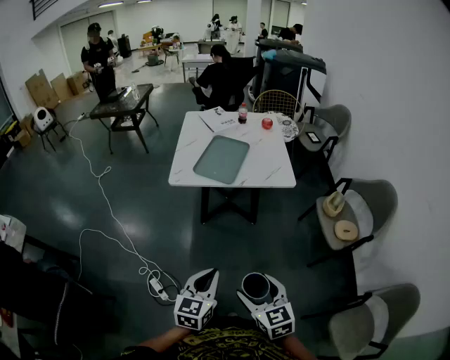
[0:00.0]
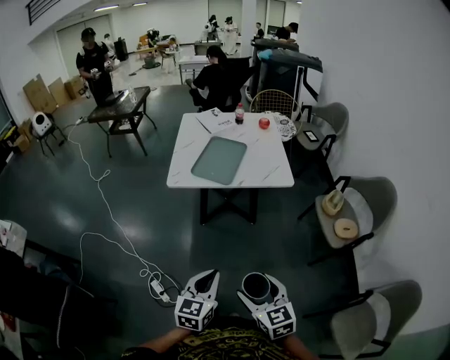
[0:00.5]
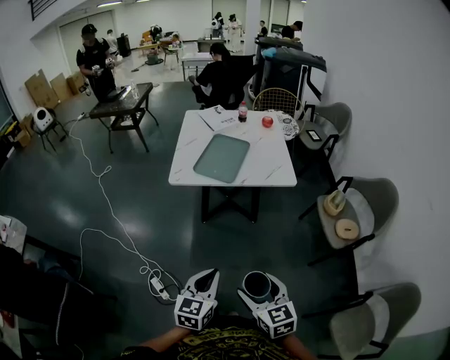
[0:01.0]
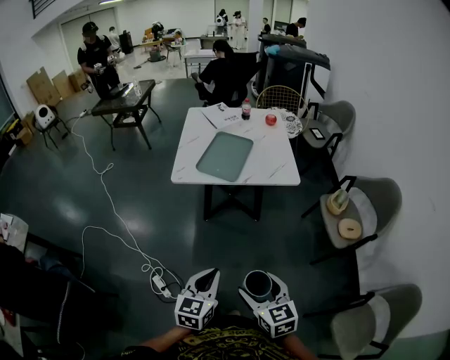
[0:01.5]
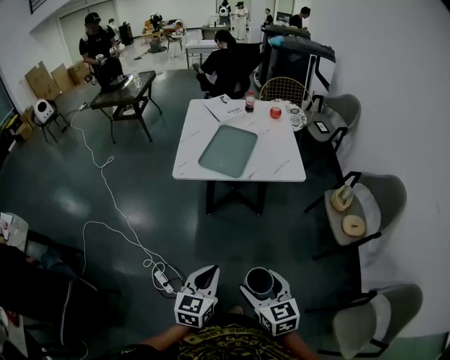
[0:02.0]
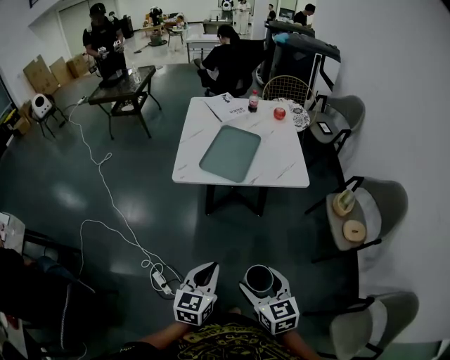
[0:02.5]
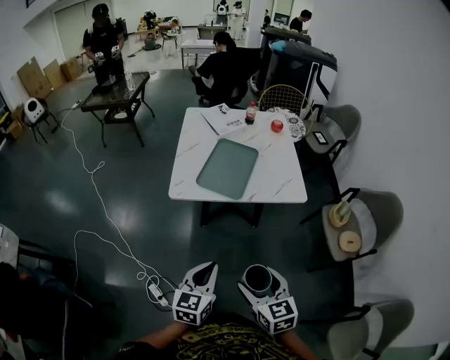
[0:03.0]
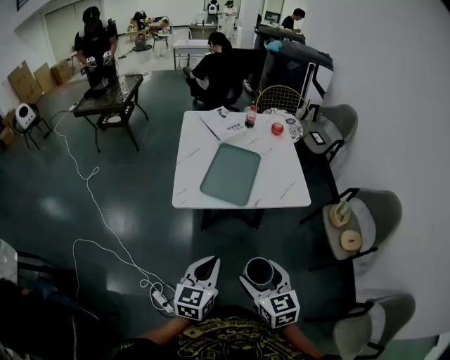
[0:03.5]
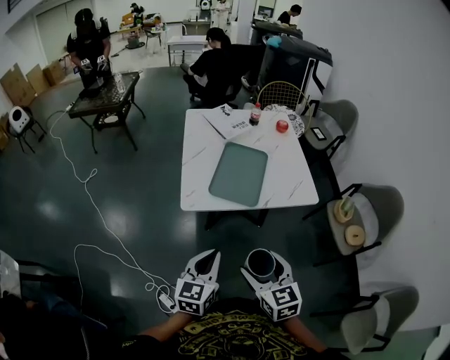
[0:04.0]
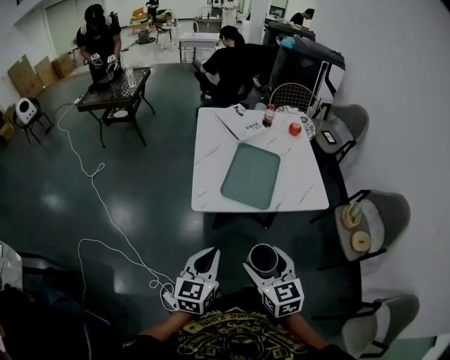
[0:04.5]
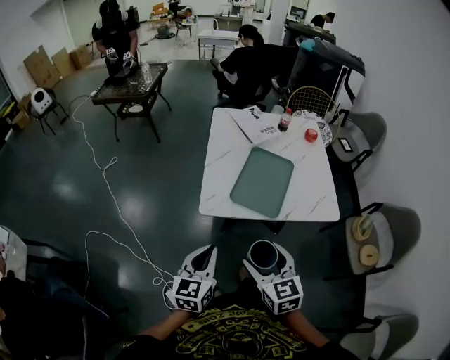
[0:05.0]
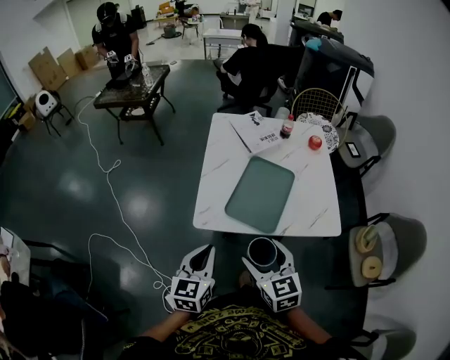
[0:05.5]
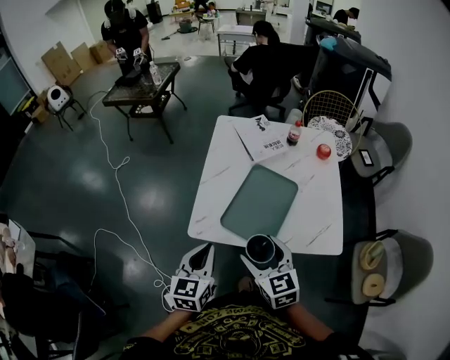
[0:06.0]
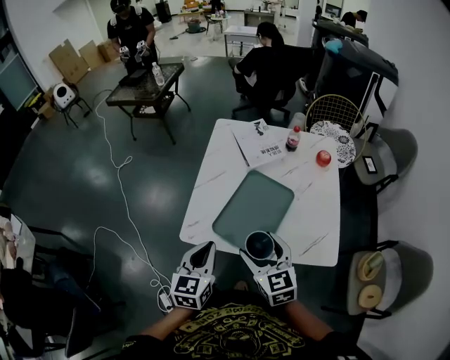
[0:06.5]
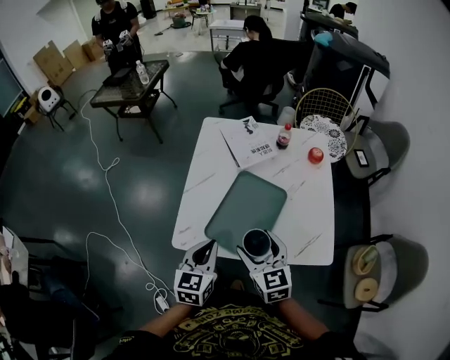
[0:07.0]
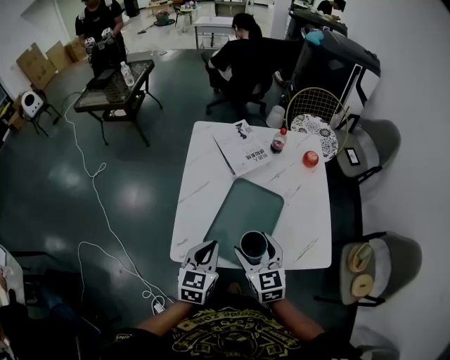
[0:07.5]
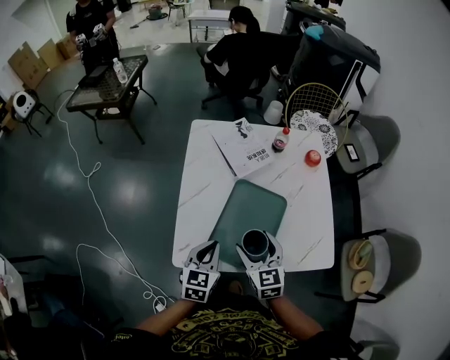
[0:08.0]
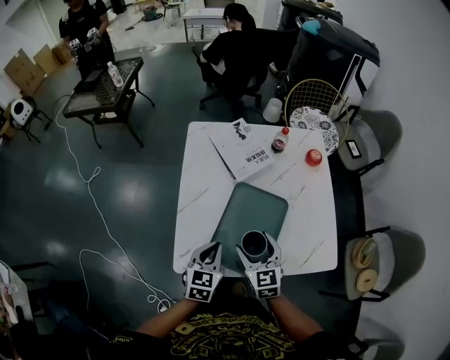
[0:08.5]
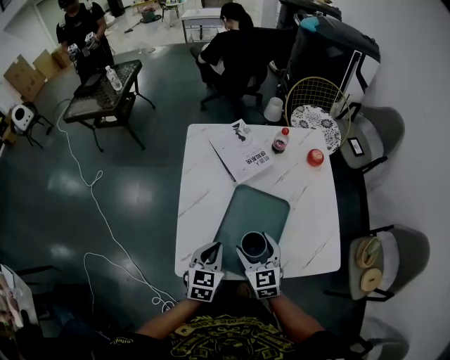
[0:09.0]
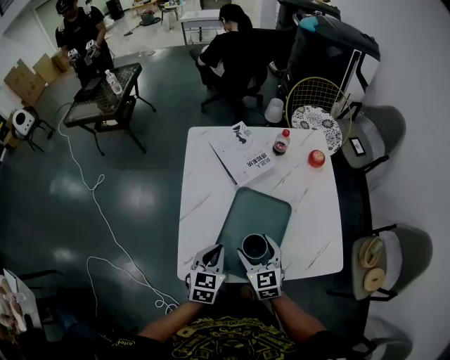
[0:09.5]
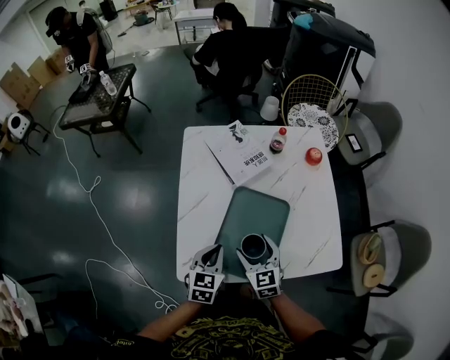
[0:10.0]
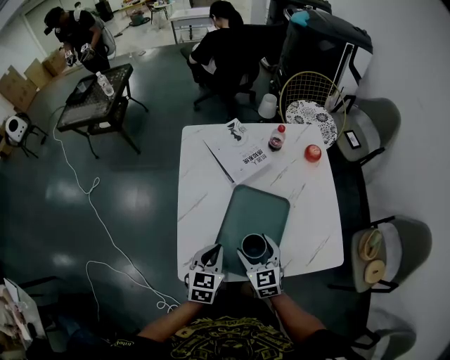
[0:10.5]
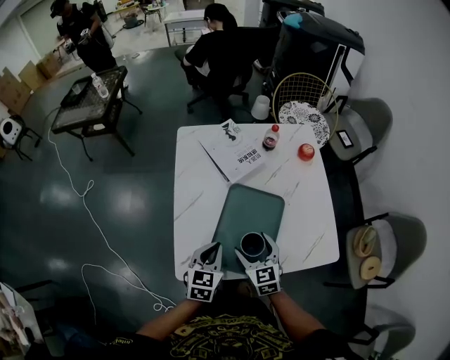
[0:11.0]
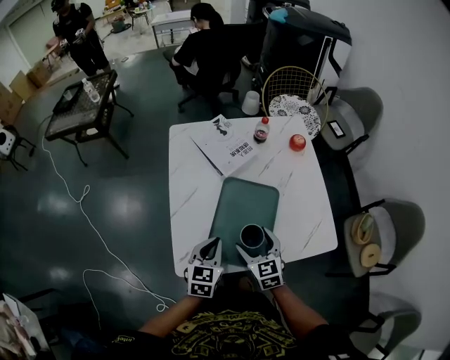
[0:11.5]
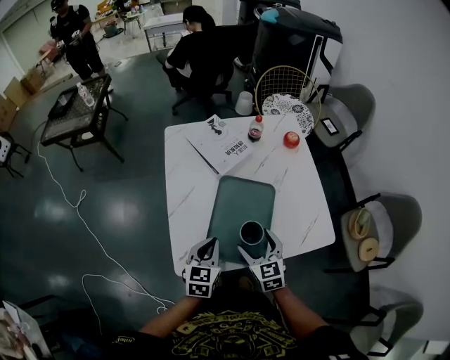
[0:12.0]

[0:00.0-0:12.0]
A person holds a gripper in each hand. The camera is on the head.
0:00.0 to 0:02.0: The grippers stay close to where they were, moving slightly.
0:02.0 to 0:04.0: Both grippers move forward and to the left, about 25 cm.
0:04.0 to 0:06.0: Both grippers travel together forward, about 20 cm. The left gripper turns by about 20 degrees.
0:06.0 to 0:08.0: The grippers both shift forward and downward by some 15 cm.
0:08.0 to 0:10.0: The right gripper shifts about 5 cm downward; the left gripper ends up approximately 5 cm from where it was.
0:10.0 to 0:12.0: The right gripper moves roughly 5 cm.

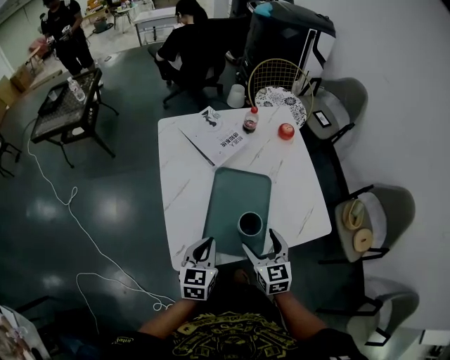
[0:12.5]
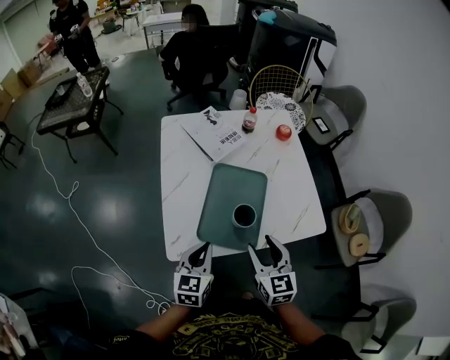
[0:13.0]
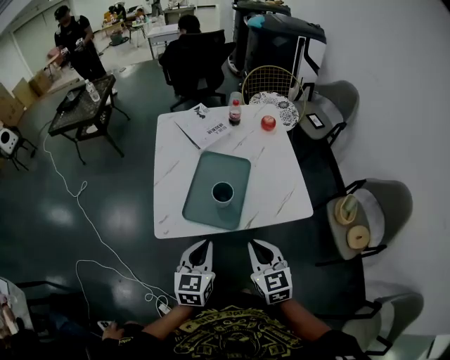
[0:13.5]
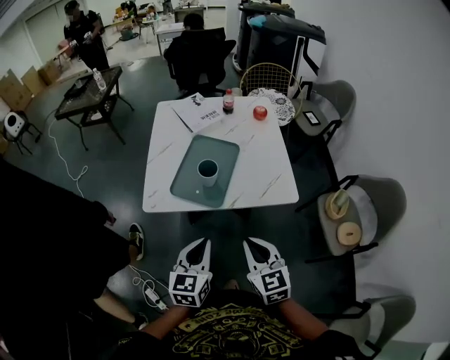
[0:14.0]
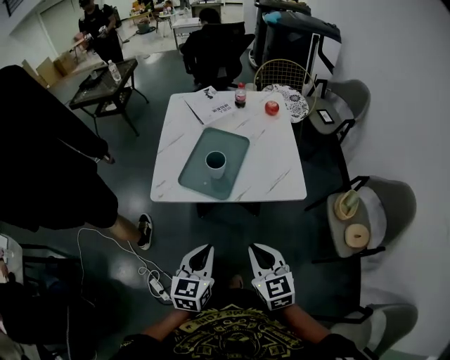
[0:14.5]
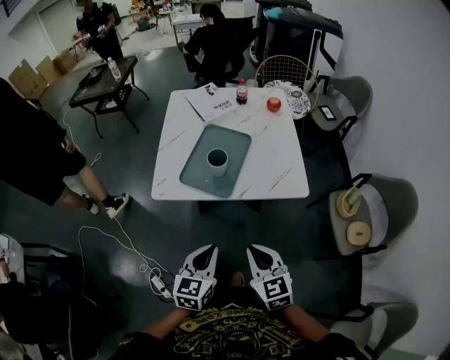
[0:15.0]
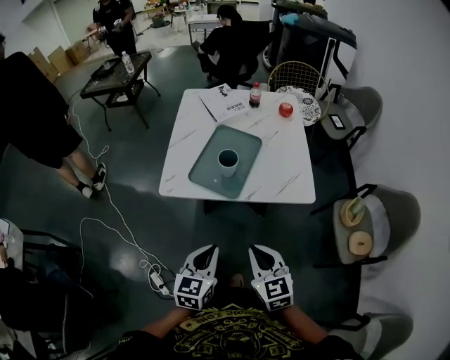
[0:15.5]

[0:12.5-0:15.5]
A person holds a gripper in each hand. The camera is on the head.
0:12.5 to 0:14.0: Both grippers move backward and to the right, about 25 cm. The right gripper closes its fingers.
0:14.0 to 0:15.5: The left gripper is displaced backward by about 5 cm.

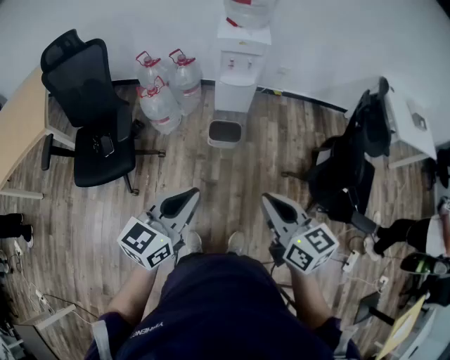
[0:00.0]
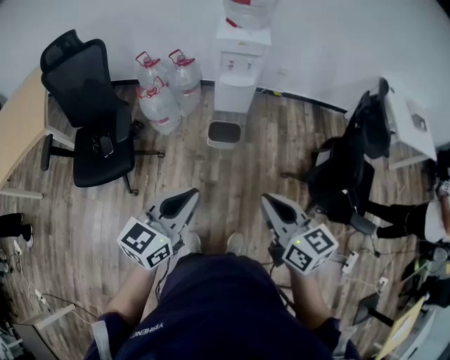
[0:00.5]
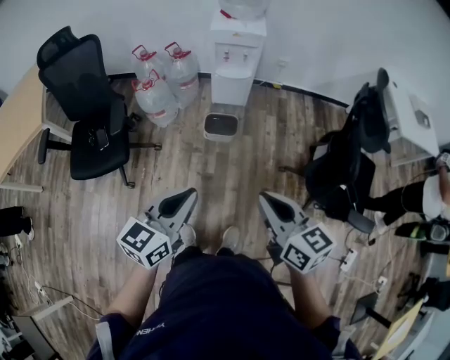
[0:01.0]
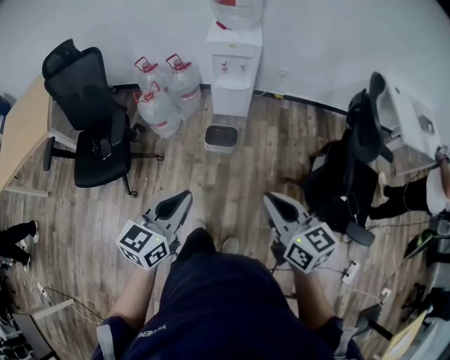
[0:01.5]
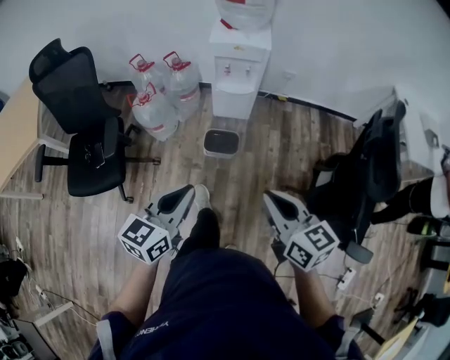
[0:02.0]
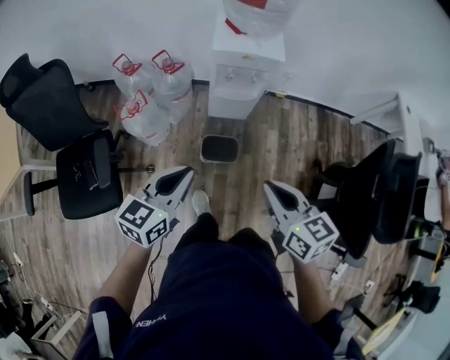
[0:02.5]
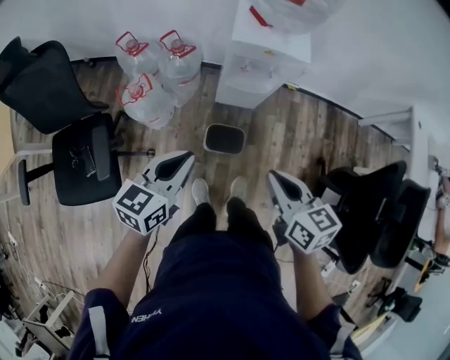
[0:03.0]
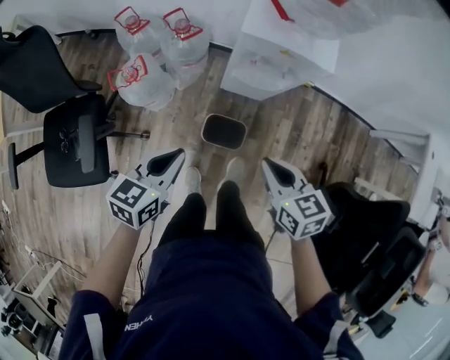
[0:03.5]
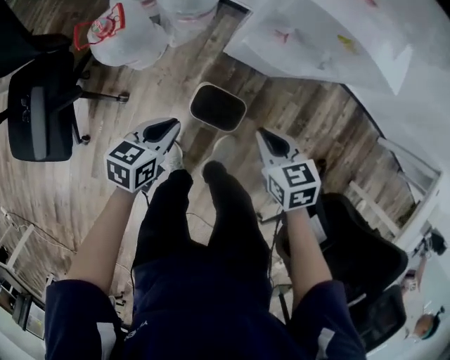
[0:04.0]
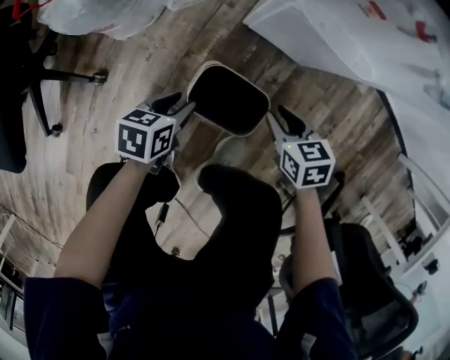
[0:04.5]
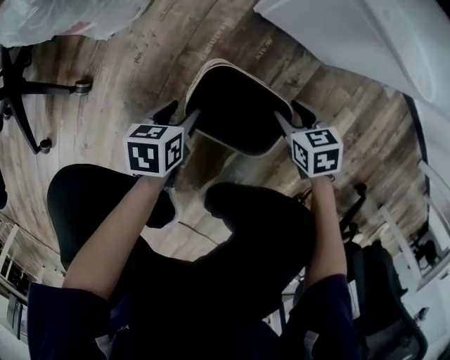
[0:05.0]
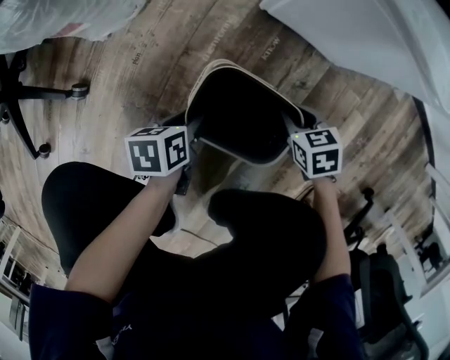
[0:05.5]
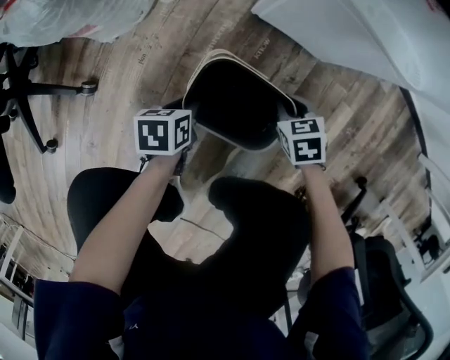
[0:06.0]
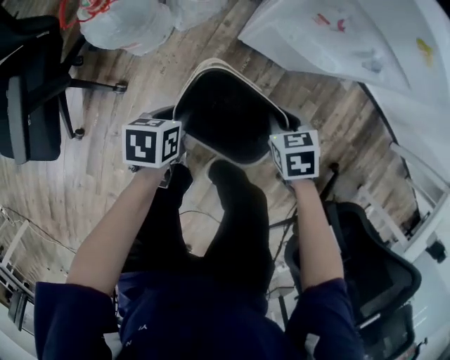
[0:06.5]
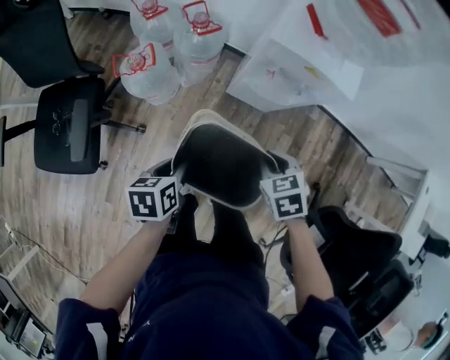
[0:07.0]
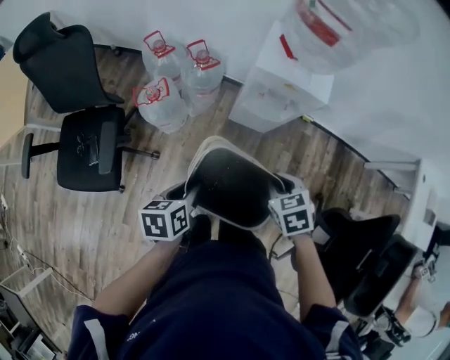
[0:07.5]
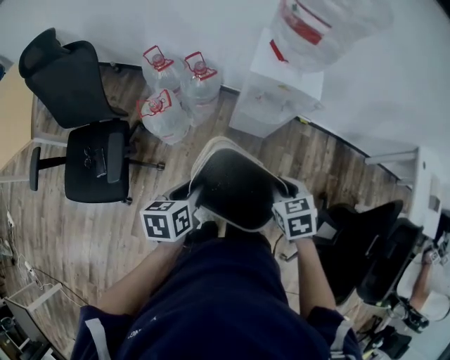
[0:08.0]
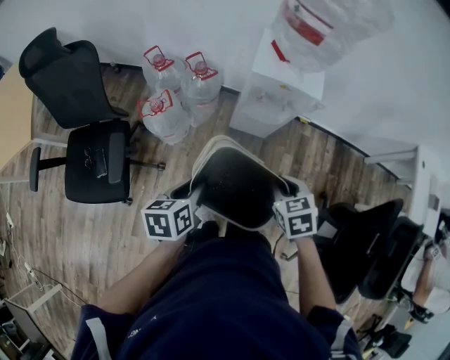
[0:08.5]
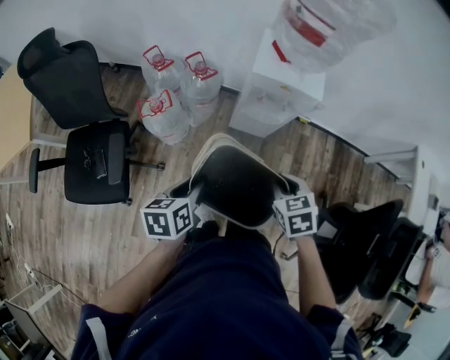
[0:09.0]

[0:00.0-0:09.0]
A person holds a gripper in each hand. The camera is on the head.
0:00.0 to 0:02.0: The left gripper moves forward, downward and to the right, roughly 15 cm. Meanwhile the right gripper travels forward and to the right by roughly 15 cm.
0:02.0 to 0:04.5: Both grippers travel together downward and forward, about 80 cm. The right gripper tilts its fingers some 40 degrees downward, and opens up; the left gripper tips its fingers downward by approximately 30 degrees, and opens.
0:04.5 to 0:07.0: Both grippers travel together upward, about 40 cm.
0:07.0 to 0:09.0: The left gripper shifts some 15 cm upward; the right gripper travels upward and backward by approximately 15 cm.

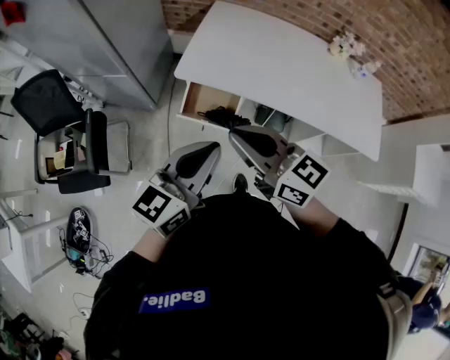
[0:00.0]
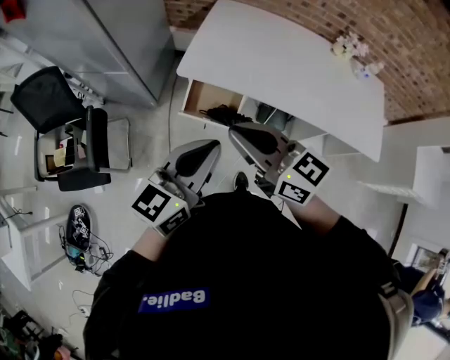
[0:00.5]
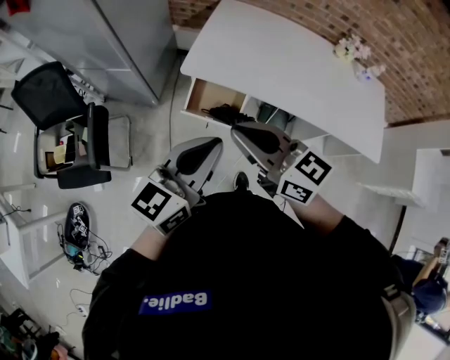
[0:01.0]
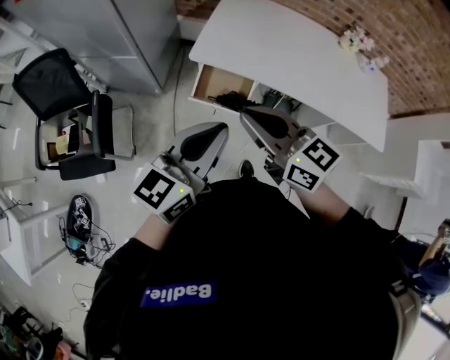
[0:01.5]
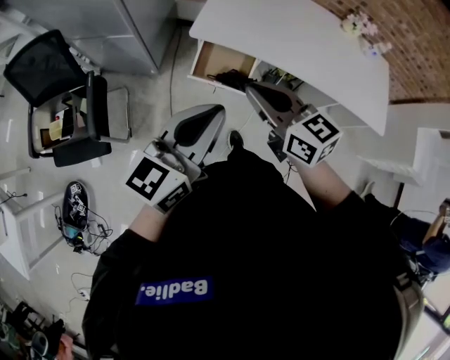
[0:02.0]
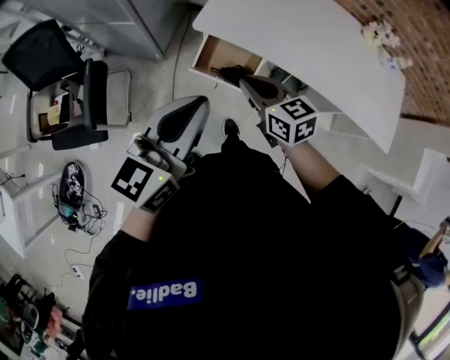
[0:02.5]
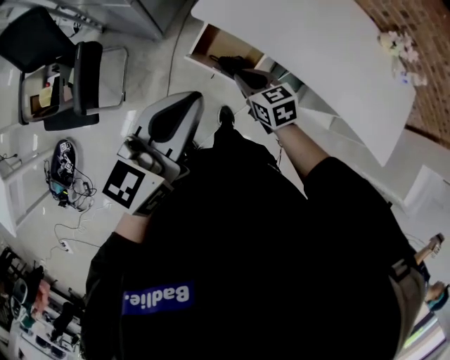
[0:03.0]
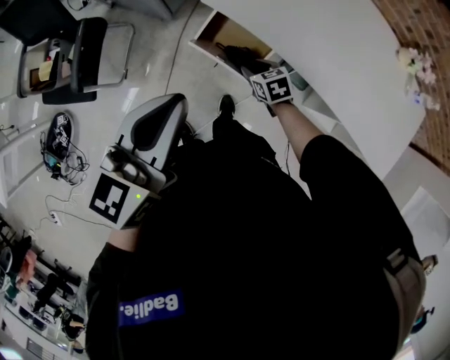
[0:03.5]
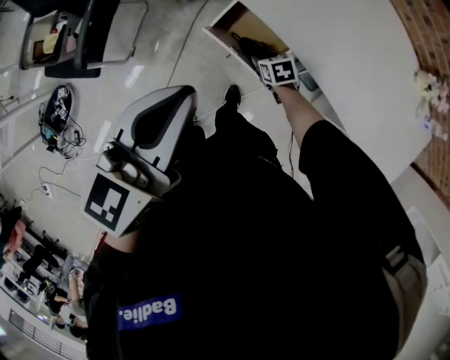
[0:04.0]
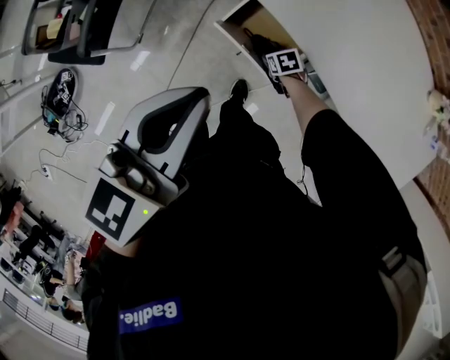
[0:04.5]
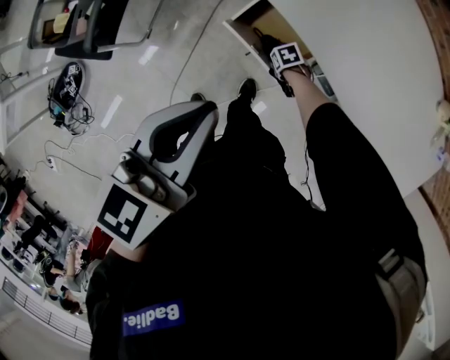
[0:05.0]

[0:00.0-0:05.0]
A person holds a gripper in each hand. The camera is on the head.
0:00.0 to 0:02.5: The right gripper is displaced downward and forward by some 20 cm, and swivels roughly 20 degrees. Meanwhile the left gripper travels to the left by approximately 10 cm.
0:02.5 to 0:05.0: The left gripper moves about 10 cm, and swivels some 30 degrees, while the right gripper goes roughly 50 cm downward, angles its fingers downward, by some 50 degrees, and opens its fingers.
